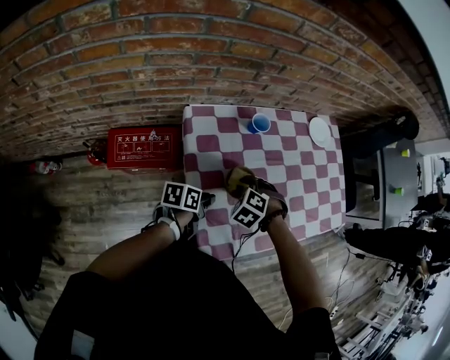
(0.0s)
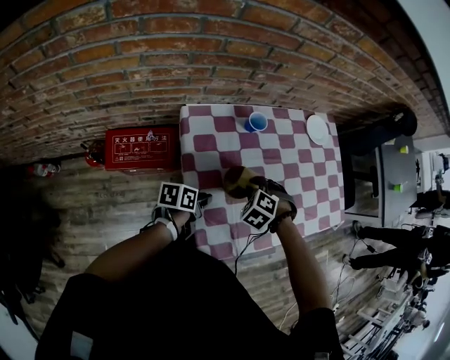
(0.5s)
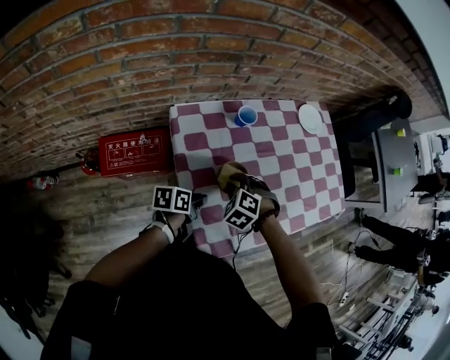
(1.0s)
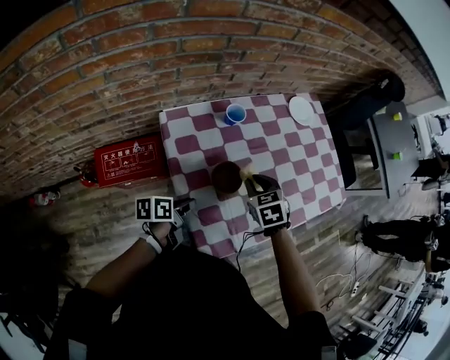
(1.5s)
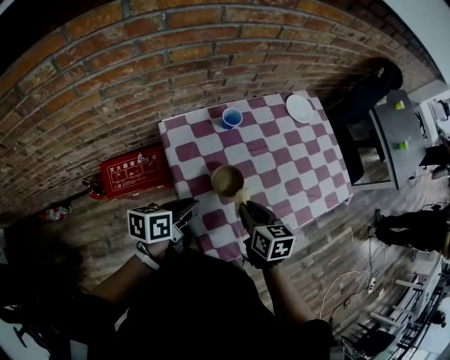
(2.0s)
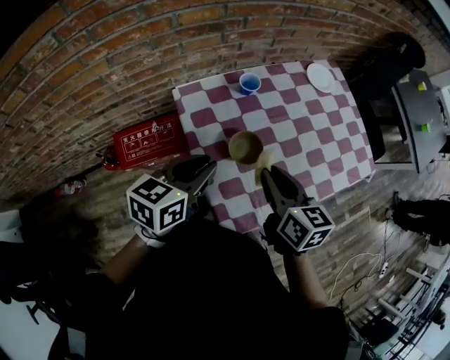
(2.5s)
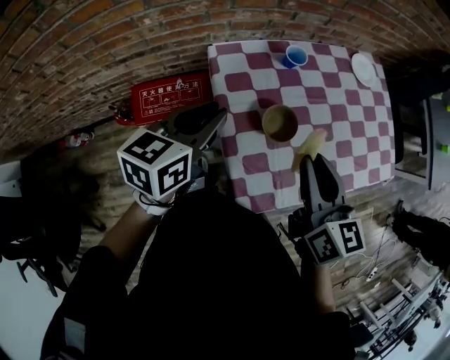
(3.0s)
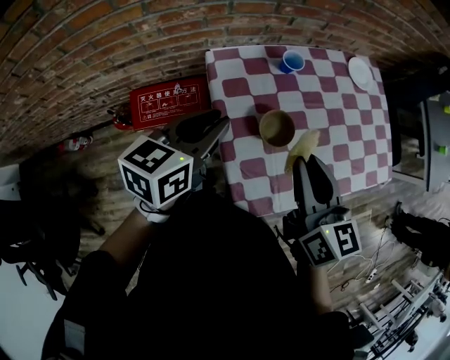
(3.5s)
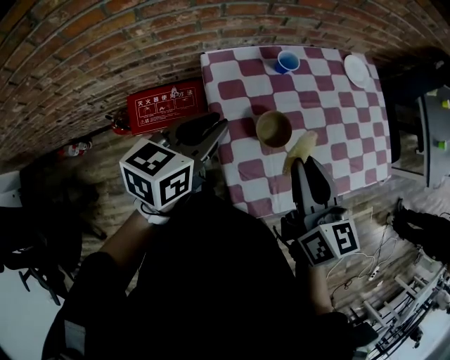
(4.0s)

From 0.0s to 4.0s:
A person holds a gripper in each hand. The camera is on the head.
From 0.0s to 2.0s: The right gripper goes some 10 cm upward and to the right, and twists about 80 degrees clockwise, seen from behind, while the left gripper moves upward, roughly 10 cm.
From 2.0s to 4.0s: The right gripper is displaced upward by about 15 cm, and rotates roughly 20 degrees; the left gripper goes approximately 10 cm upward and to the left, and swivels about 30 degrees.

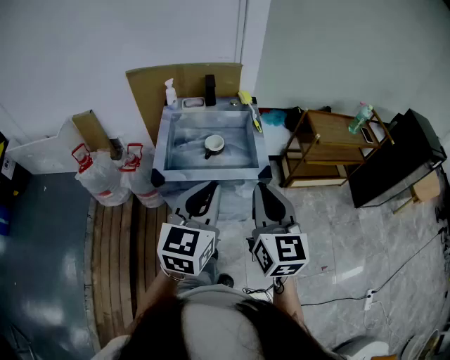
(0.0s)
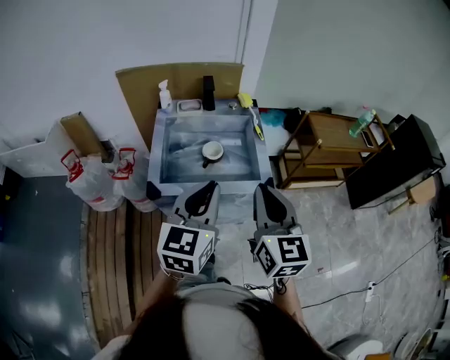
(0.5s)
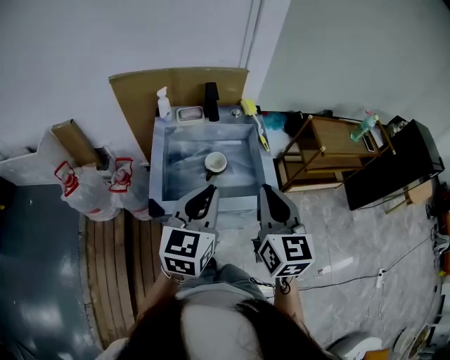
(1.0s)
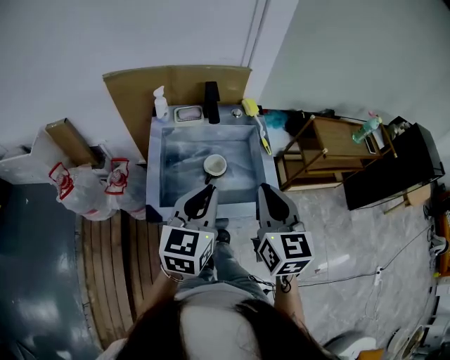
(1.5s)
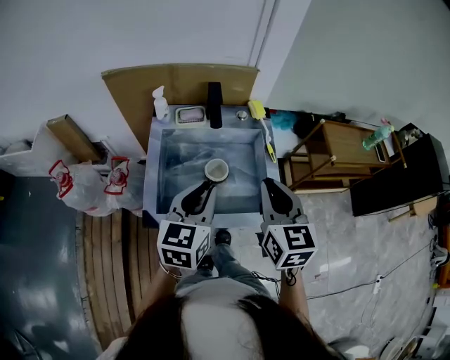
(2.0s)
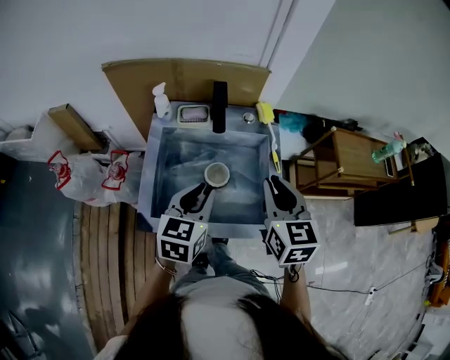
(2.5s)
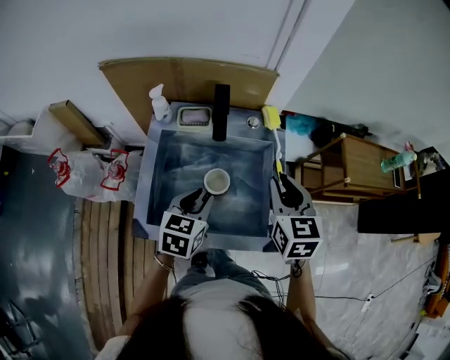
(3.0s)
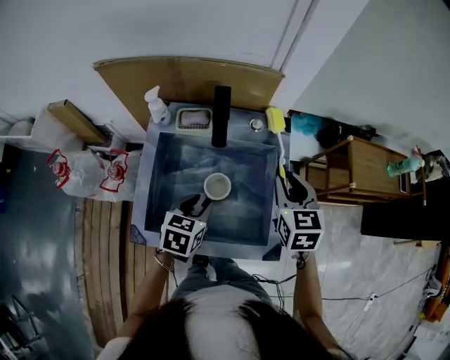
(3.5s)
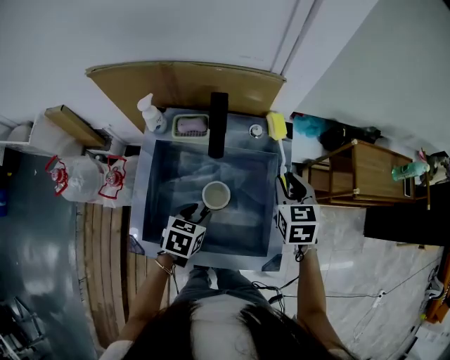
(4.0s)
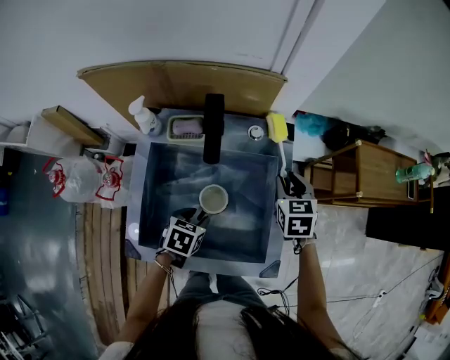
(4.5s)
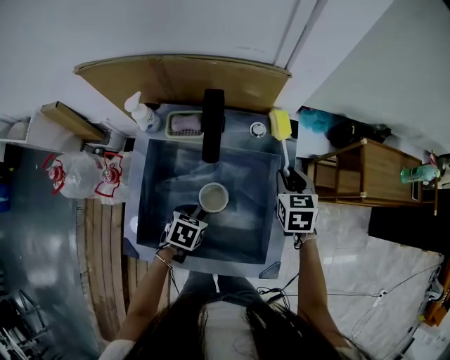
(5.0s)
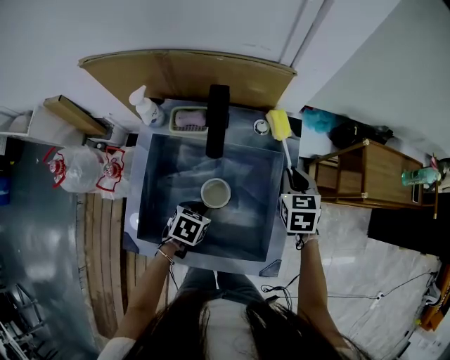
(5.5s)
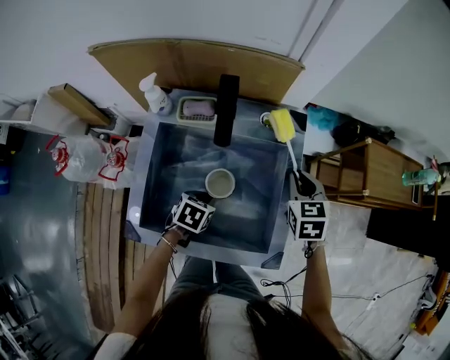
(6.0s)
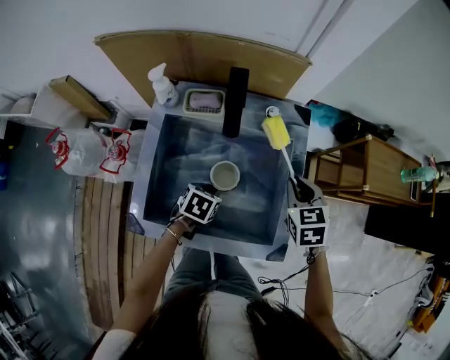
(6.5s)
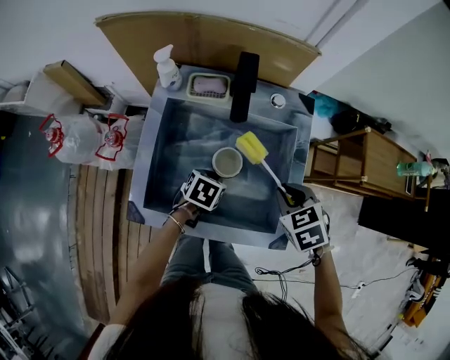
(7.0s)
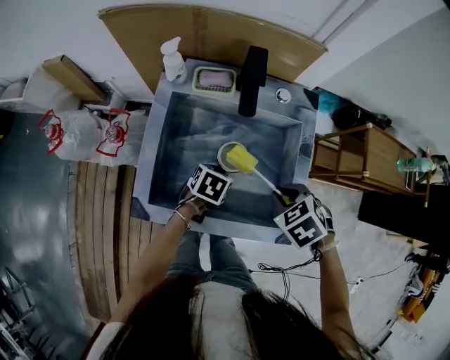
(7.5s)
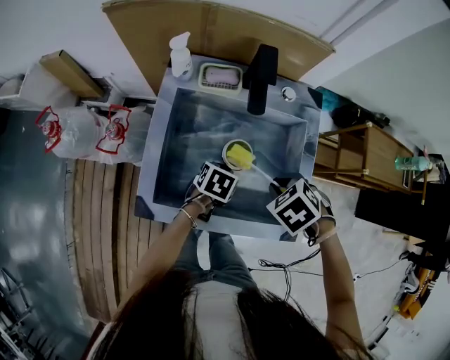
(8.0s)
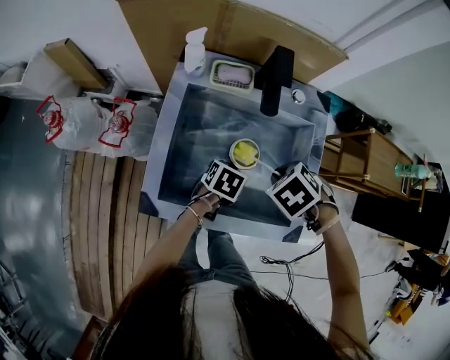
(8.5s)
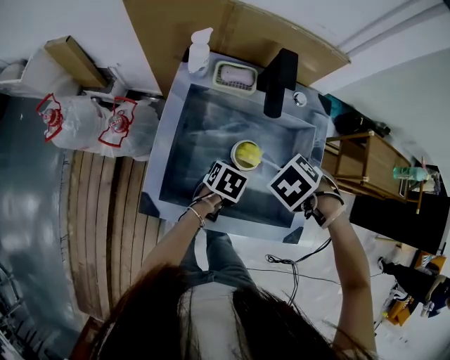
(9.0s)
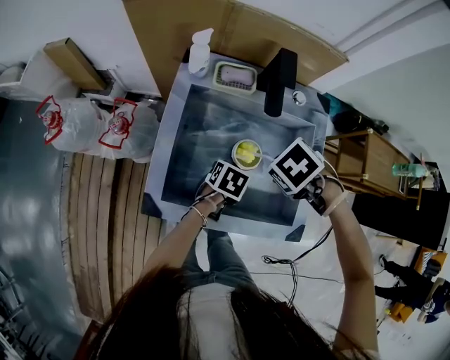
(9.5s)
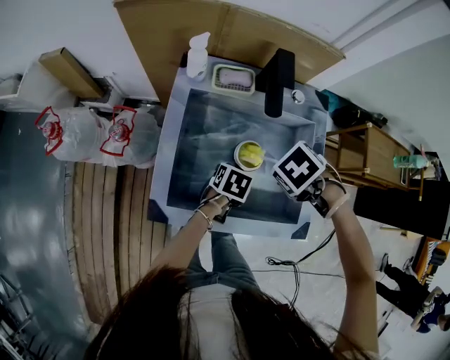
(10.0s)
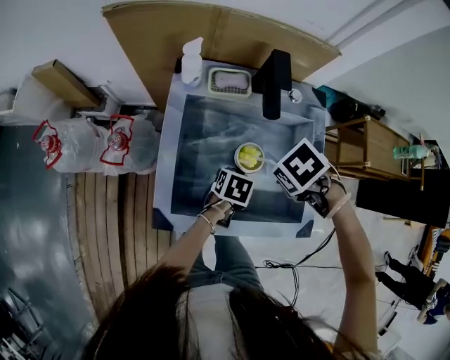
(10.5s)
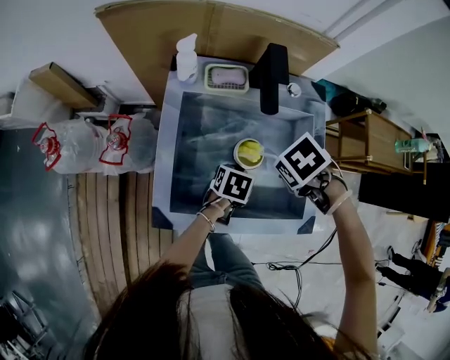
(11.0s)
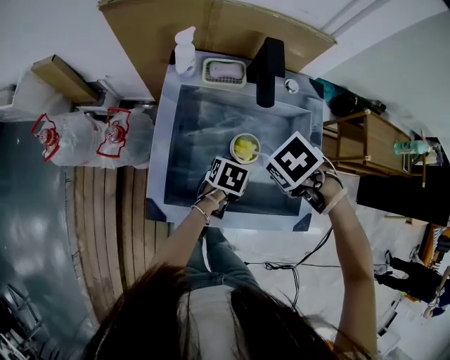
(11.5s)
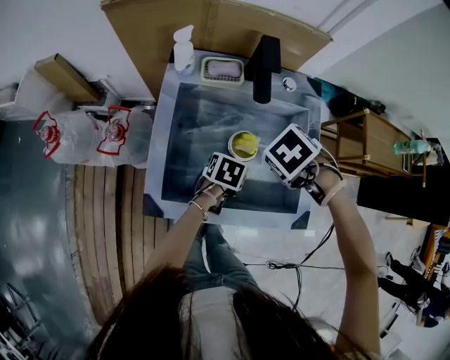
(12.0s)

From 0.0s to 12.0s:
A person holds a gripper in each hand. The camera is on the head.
From 0.0s to 2.0s: The two grippers go approximately 25 cm forward.
From 2.0s to 4.0s: The right gripper moves forward and downward, approximately 25 cm, turns by some 20 degrees, and opens its fingers. The left gripper shifts roughly 25 cm downward, tips its fingers downward by roughly 40 degrees, and opens up.
From 4.0s to 6.0s: The left gripper is displaced downward by some 5 cm.
From 6.0s to 8.0s: The right gripper shifts by approximately 20 cm, and tips its fingers downward by roughly 40 degrees.
From 8.0s to 10.0s: The right gripper ends up some 5 cm from where it was.
From 10.0s to 12.0s: The grippers make only small movements.

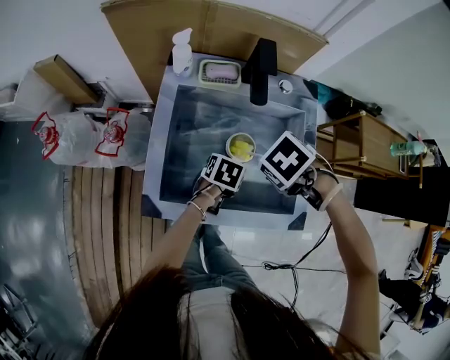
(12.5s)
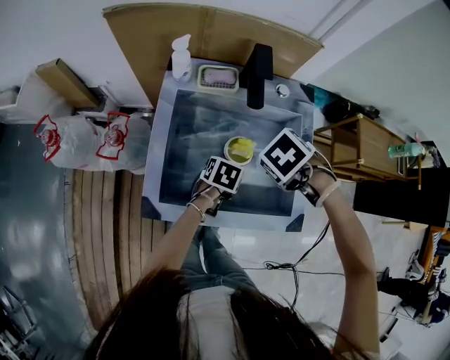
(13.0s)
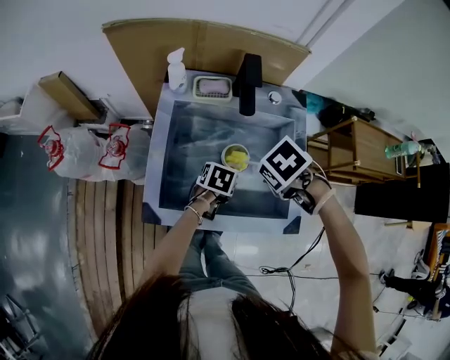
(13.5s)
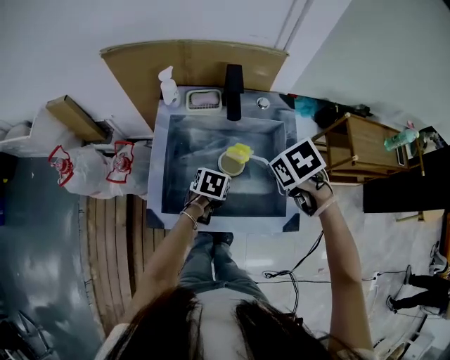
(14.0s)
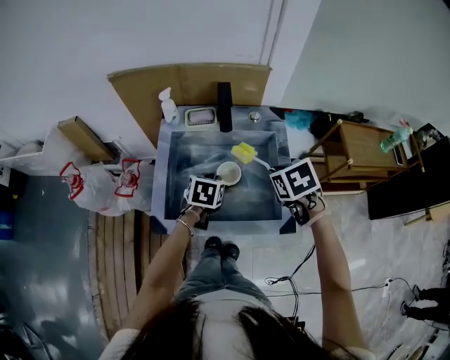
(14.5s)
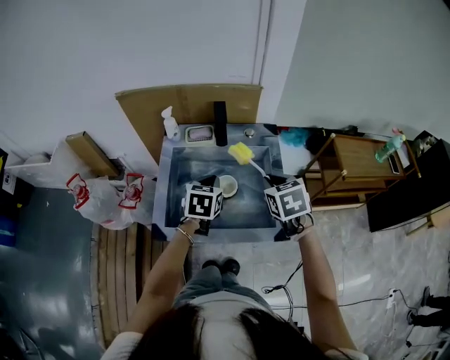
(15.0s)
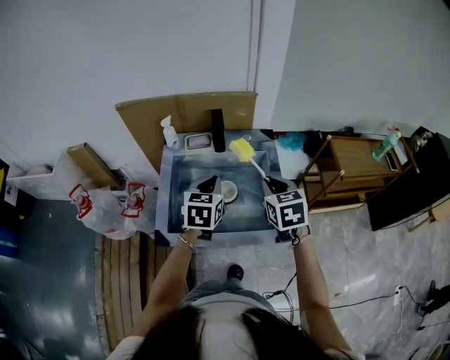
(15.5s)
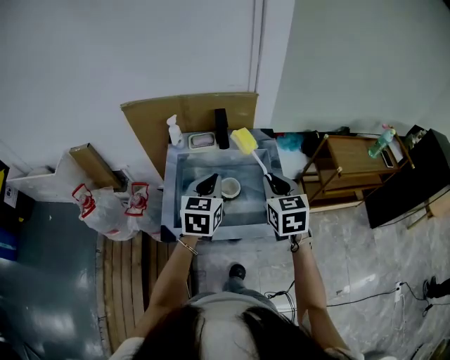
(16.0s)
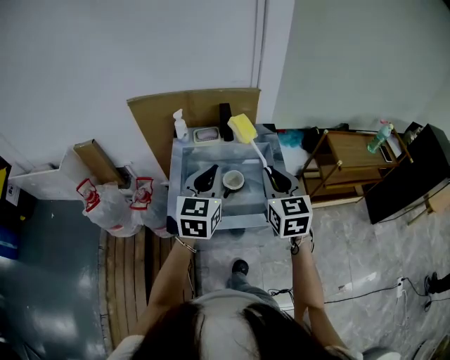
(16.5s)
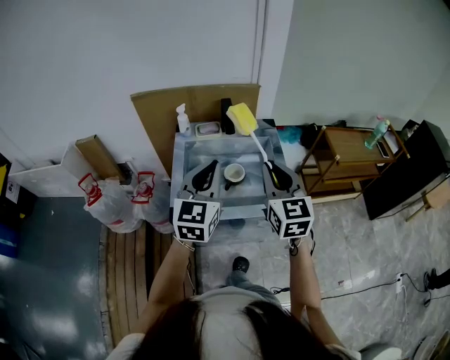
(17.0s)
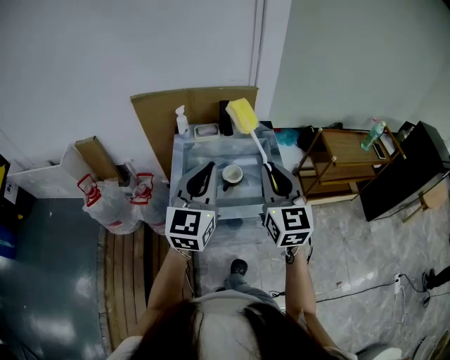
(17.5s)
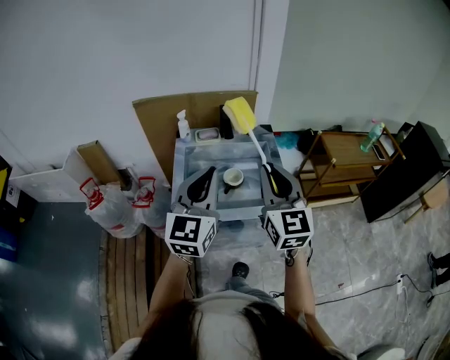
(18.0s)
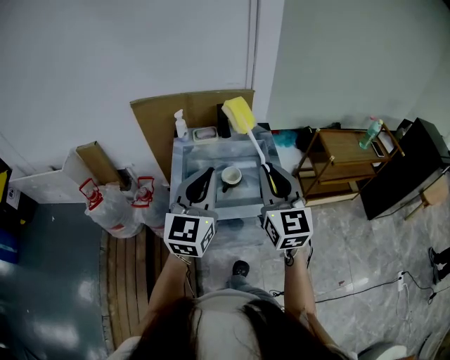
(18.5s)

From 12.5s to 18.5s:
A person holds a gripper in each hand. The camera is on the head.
From 12.5s to 14.5s: The left gripper is displaced upward by roughly 10 cm, while the right gripper moves some 10 cm, and rotates roughly 40 degrees.
From 14.5s to 16.5s: The right gripper goes some 15 cm upward and backward, and tilts its fingers roughly 50 degrees upward, while the left gripper travels upward by about 25 cm, and points its fingers some 40 degrees further upward.
From 16.5s to 18.5s: The grippers both shift backward and upward by about 15 cm.

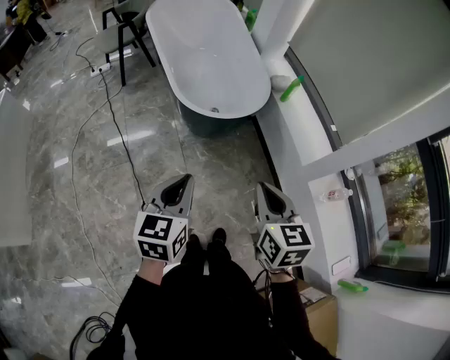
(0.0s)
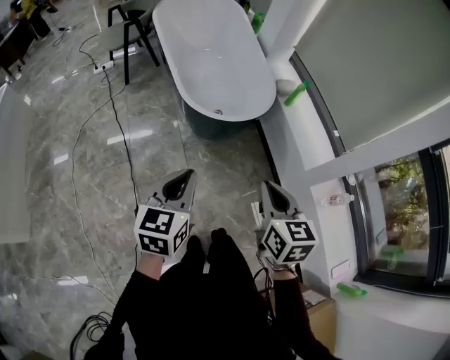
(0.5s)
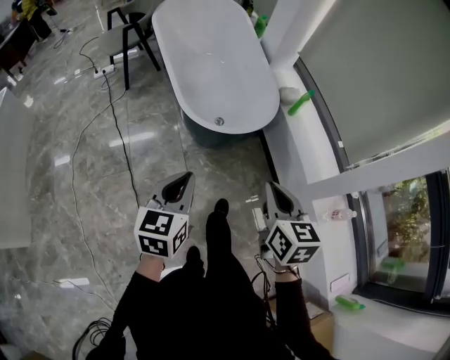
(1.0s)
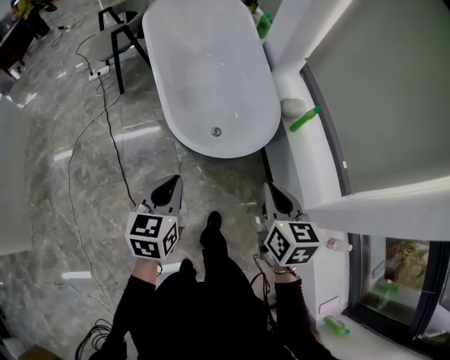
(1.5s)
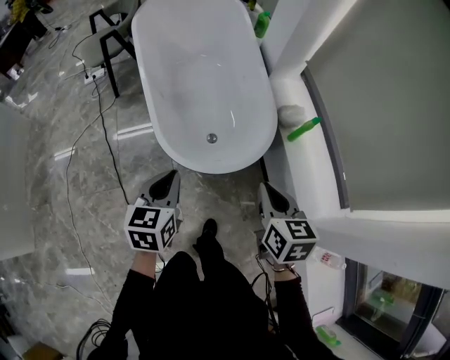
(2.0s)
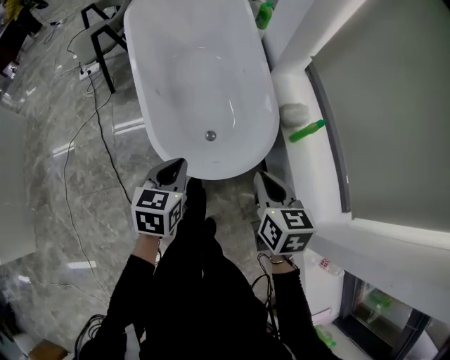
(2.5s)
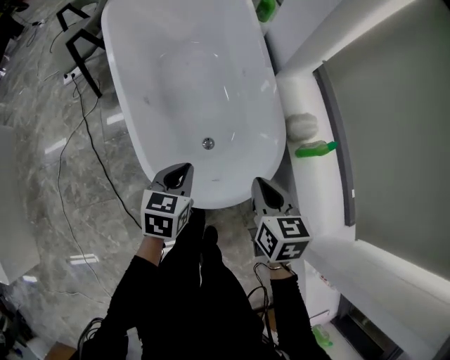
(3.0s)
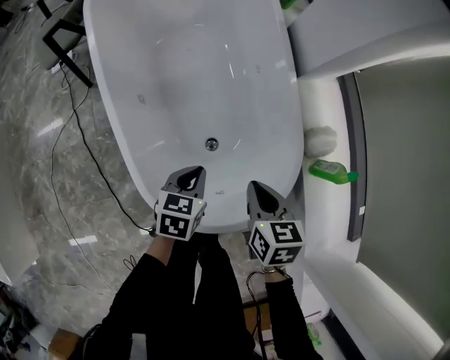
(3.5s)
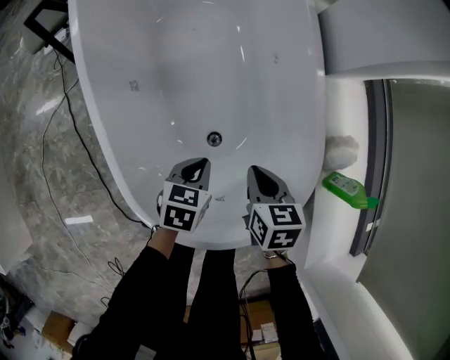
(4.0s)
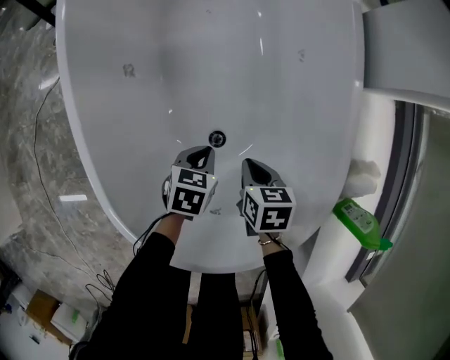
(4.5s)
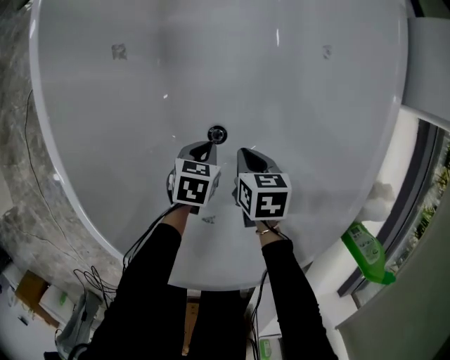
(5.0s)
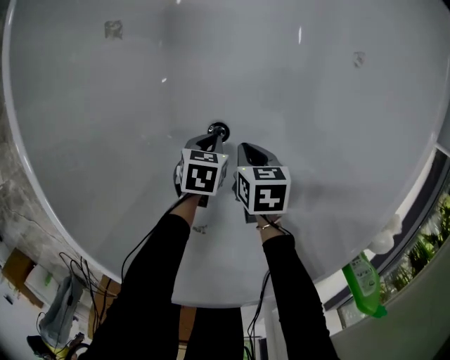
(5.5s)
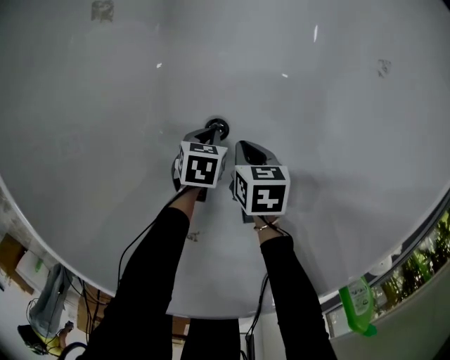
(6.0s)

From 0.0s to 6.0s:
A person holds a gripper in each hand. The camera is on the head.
From 0.0s to 2.0s: The two grippers go some 30 cm forward.
From 2.0s to 4.0s: The right gripper moves forward and downward, approximately 40 cm, and rotates about 20 degrees; the left gripper heads downward and forward, covering approximately 50 cm, and swivels about 30 degrees.
From 4.0s to 6.0s: Both grippers move downward, roughly 35 cm. The left gripper turns by approximately 30 degrees, while the right gripper swivels roughly 30 degrees.
